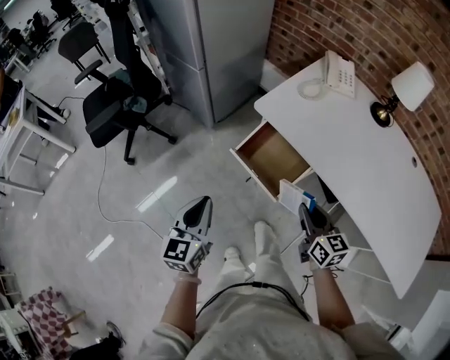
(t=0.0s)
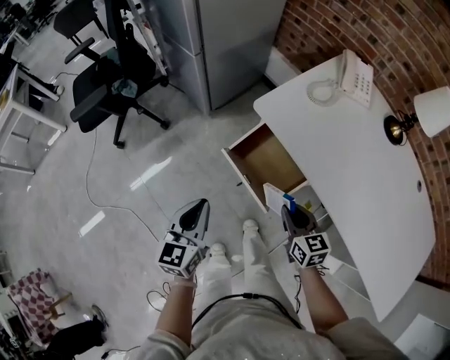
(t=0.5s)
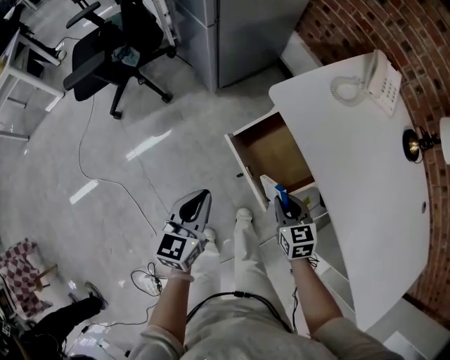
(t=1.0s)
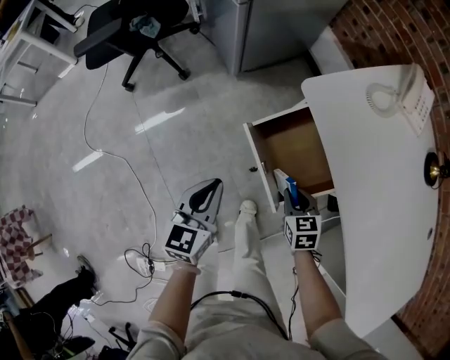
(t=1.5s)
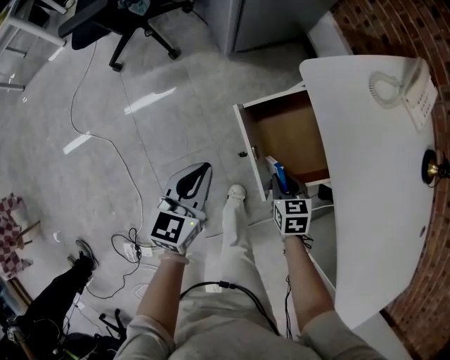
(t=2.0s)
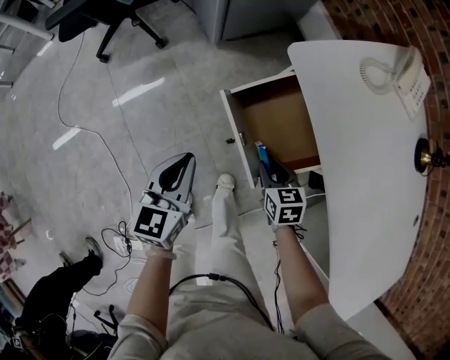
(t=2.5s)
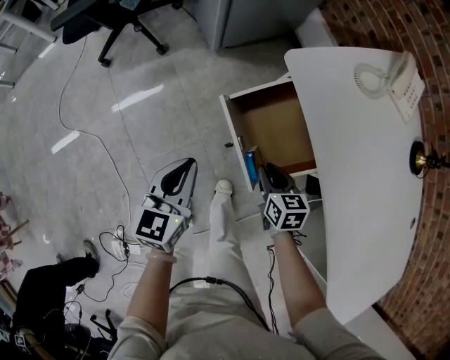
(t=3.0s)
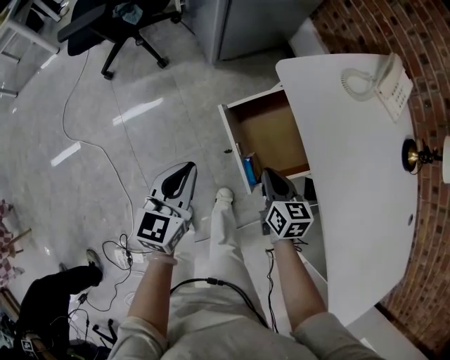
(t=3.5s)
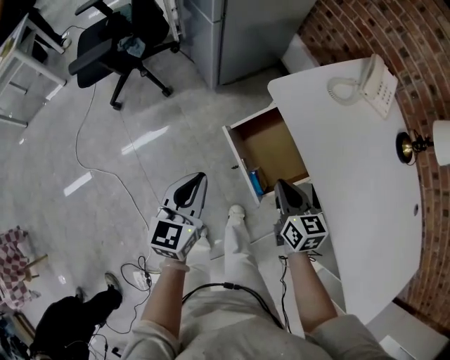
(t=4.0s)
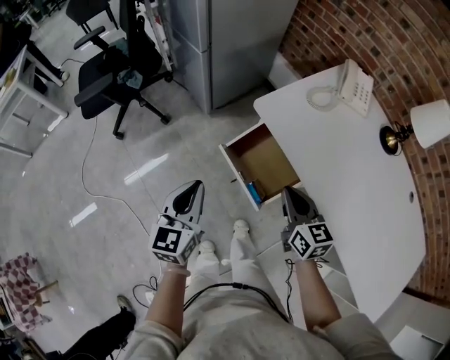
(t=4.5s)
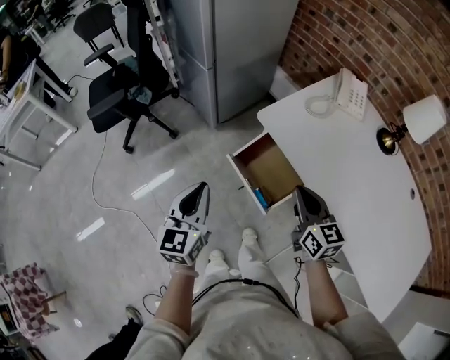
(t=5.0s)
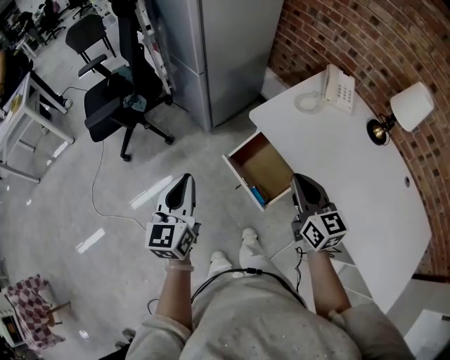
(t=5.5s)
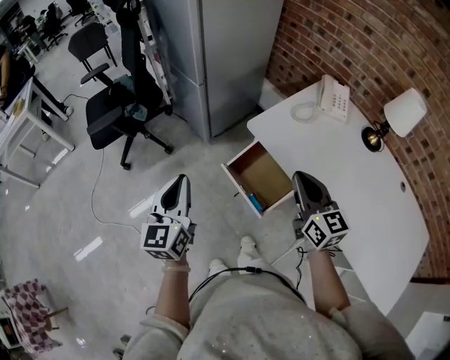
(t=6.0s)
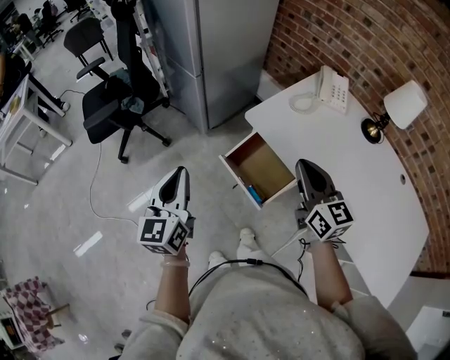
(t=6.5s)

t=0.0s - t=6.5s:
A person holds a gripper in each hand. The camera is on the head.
t=0.0s - t=2.0s: The left gripper heads downward and forward, covering approximately 15 cm. Meanwhile the right gripper travels downward and forward by about 25 cm, and tilts its fingers about 30 degrees downward.
t=2.0s - t=4.5s: The right gripper heads upward, covering approximately 25 cm, and tips its fingers upward by some 30 degrees. Meanwhile the left gripper shifts approximately 15 cm upward.
t=4.5s - t=6.5s: The right gripper shifts roughly 15 cm upward. The left gripper goes some 10 cm upward and to the left.

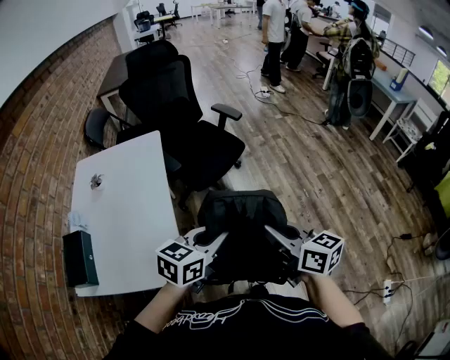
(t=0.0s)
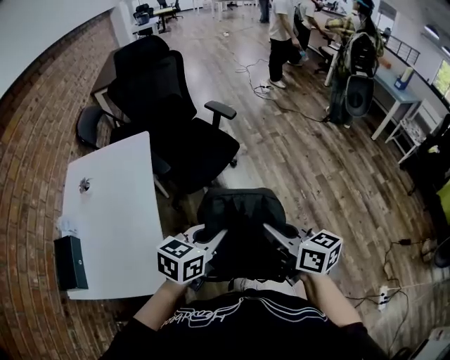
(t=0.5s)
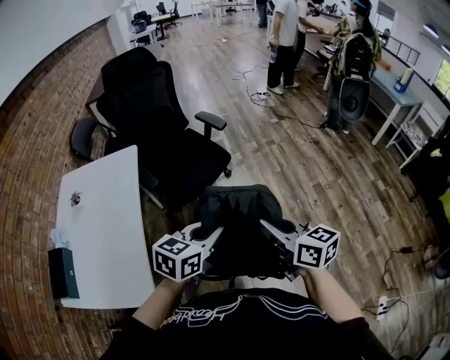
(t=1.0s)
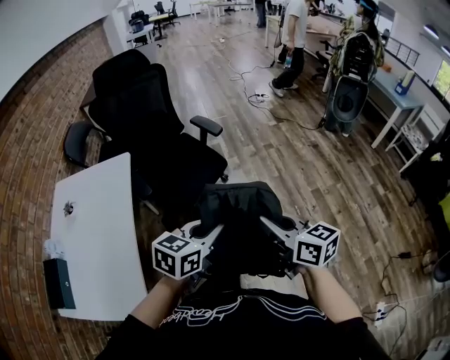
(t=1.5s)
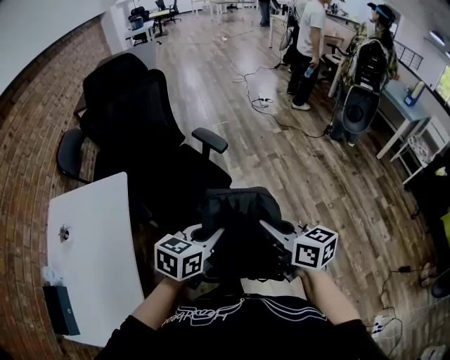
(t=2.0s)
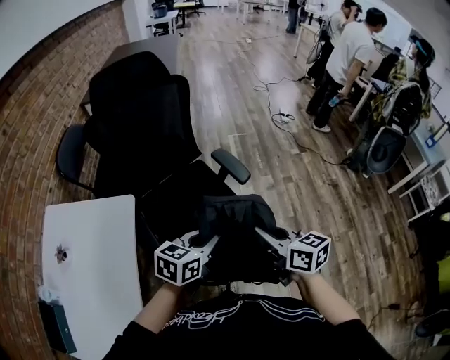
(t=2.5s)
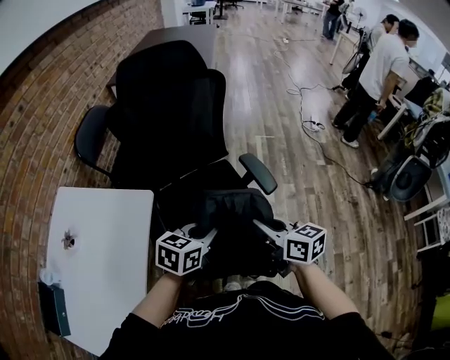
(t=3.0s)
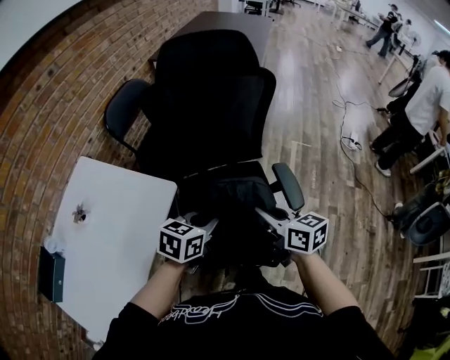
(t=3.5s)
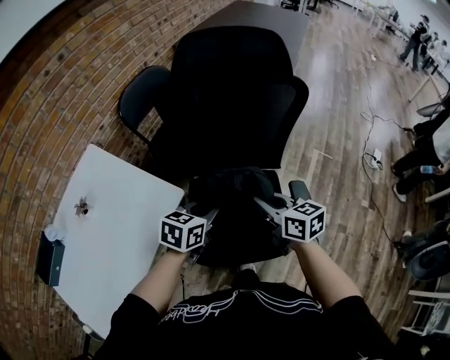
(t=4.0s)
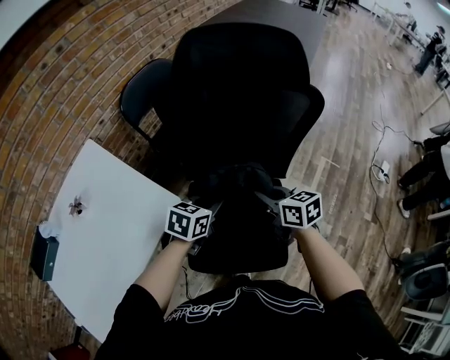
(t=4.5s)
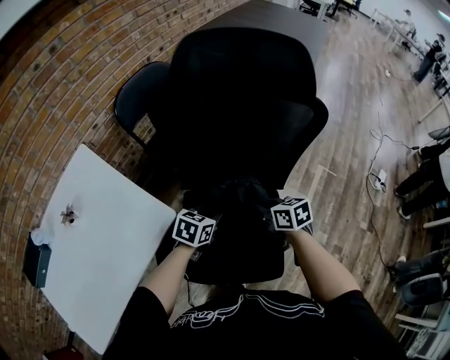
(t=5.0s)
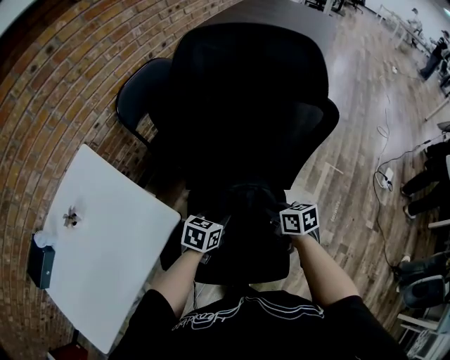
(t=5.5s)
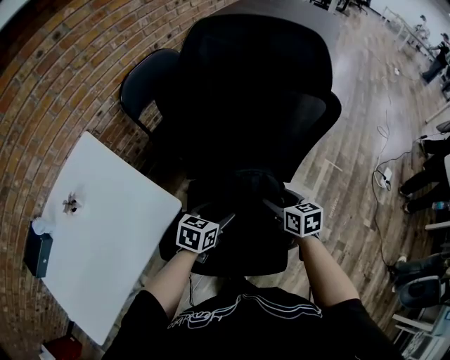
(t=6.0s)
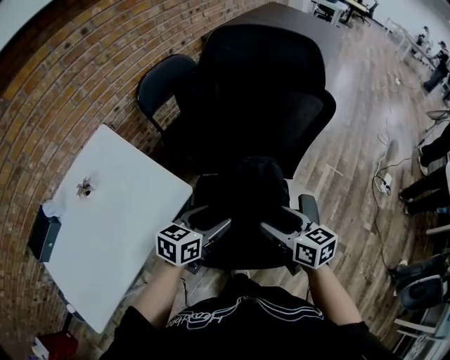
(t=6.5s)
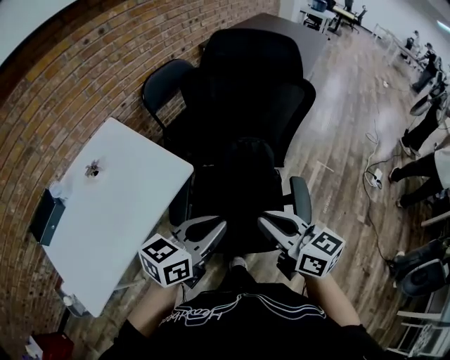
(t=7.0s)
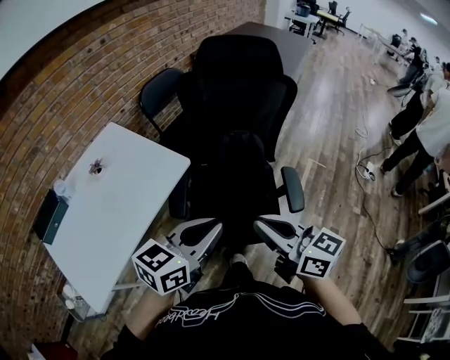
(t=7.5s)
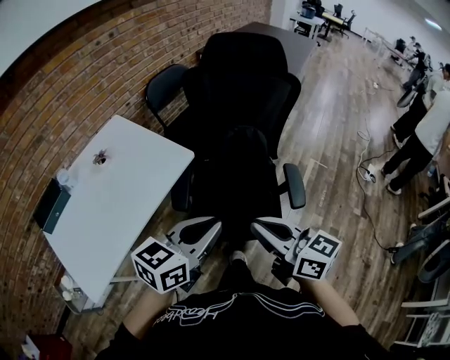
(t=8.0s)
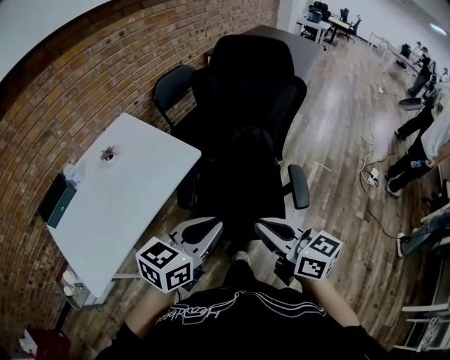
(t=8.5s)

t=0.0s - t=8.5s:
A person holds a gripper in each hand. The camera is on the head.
t=0.0s - t=2.0s: The grippers both shift forward by some 35 cm.
t=2.0s - t=4.0s: The two grippers travel together, about 50 cm. The left gripper rotates approximately 40 degrees. Meanwhile the right gripper rotates approximately 40 degrees.
t=4.0s - t=6.5s: The right gripper goes downward and returns, roughly 15 cm each way, and opens its fingers. Meanwhile the left gripper reaches approximately 15 cm downward, then returns, and opens its fingers.
t=6.5s - t=8.5s: The two grippers go approximately 30 cm backward and upward. The right gripper turns by approximately 20 degrees, and closes up. Meanwhile the left gripper closes up.

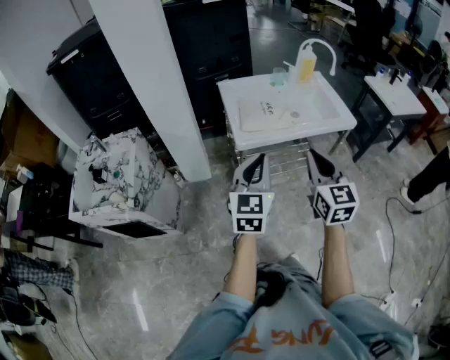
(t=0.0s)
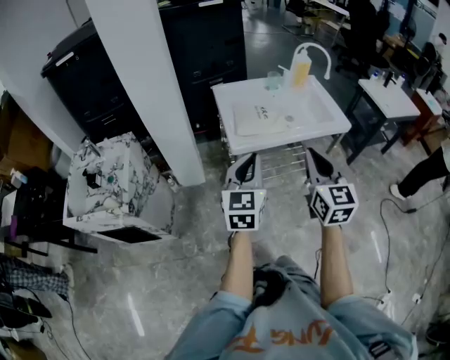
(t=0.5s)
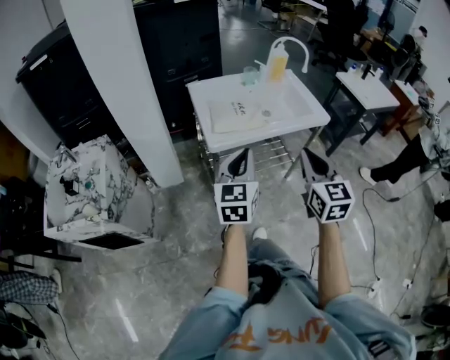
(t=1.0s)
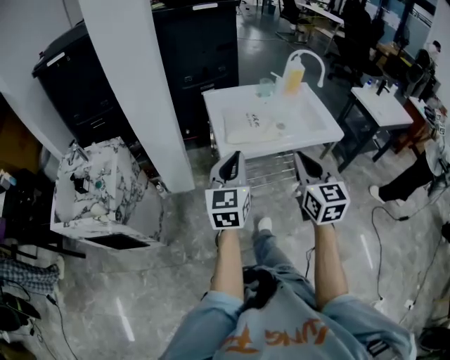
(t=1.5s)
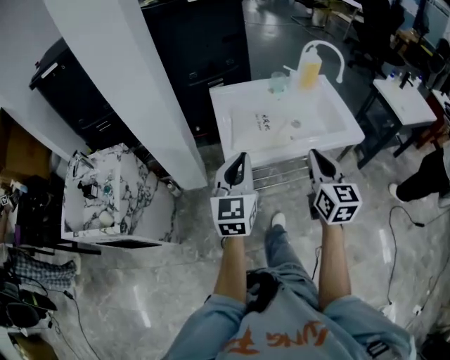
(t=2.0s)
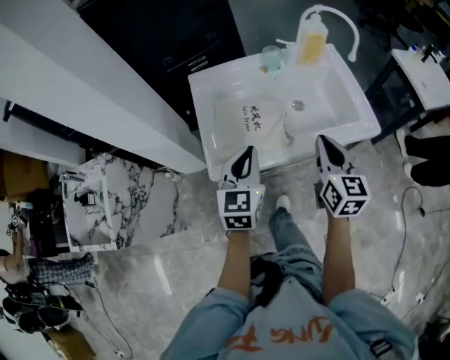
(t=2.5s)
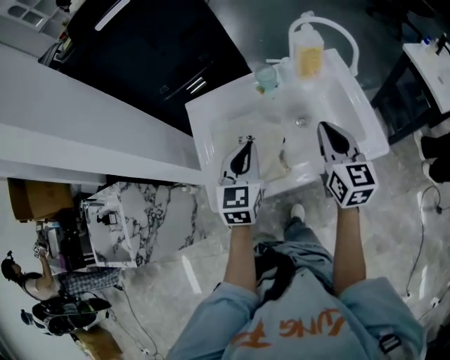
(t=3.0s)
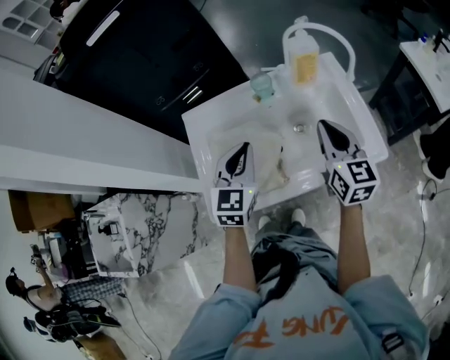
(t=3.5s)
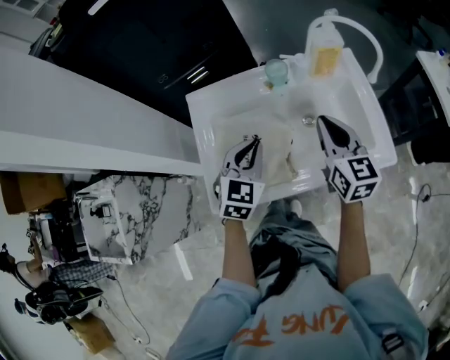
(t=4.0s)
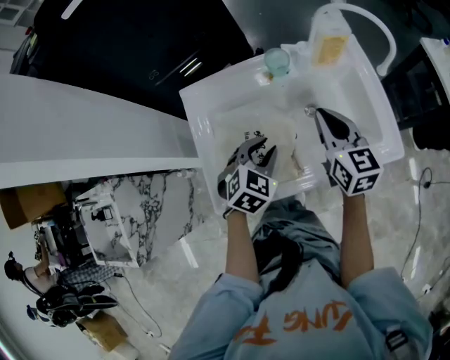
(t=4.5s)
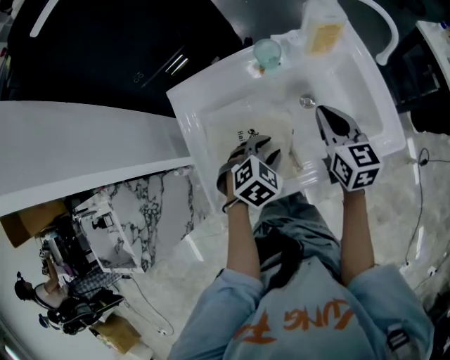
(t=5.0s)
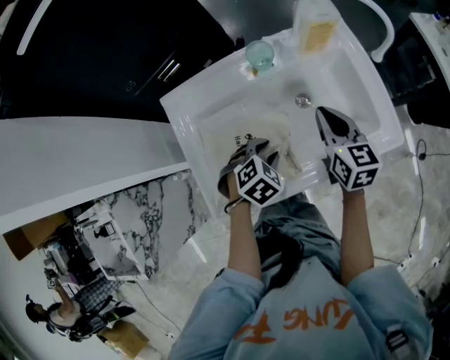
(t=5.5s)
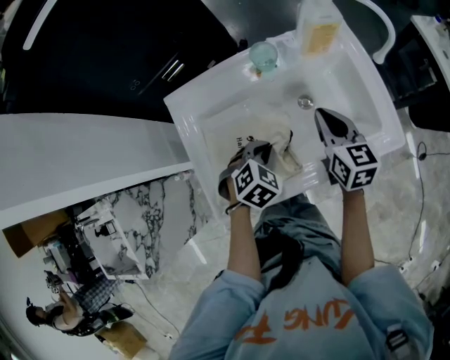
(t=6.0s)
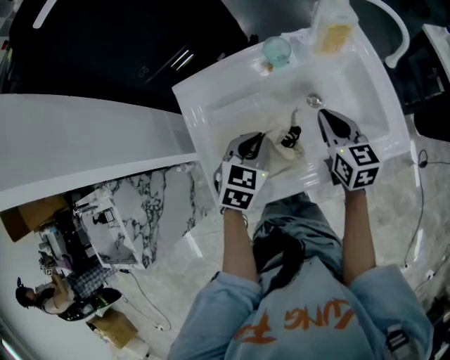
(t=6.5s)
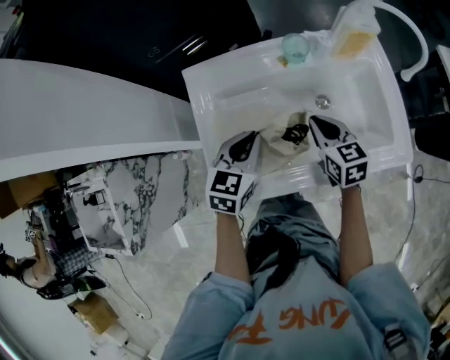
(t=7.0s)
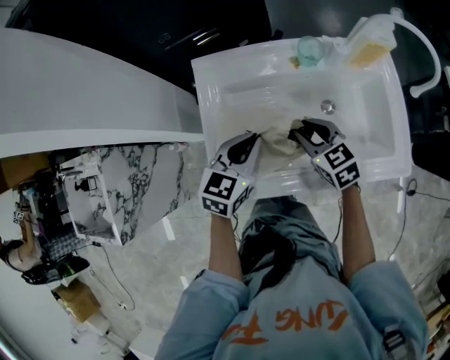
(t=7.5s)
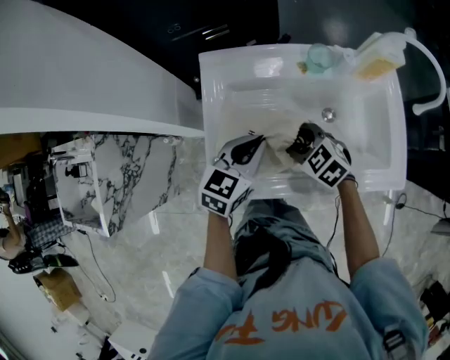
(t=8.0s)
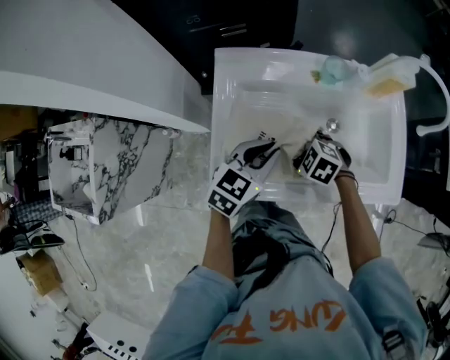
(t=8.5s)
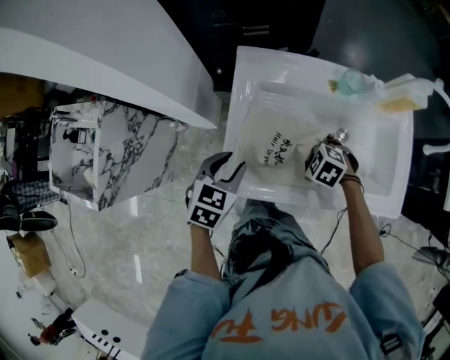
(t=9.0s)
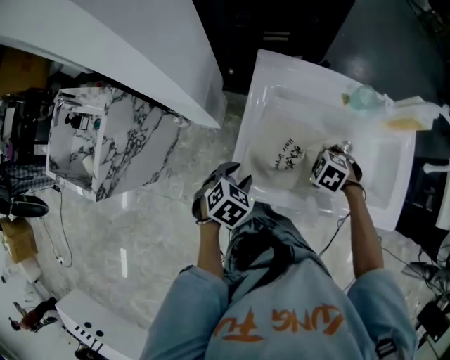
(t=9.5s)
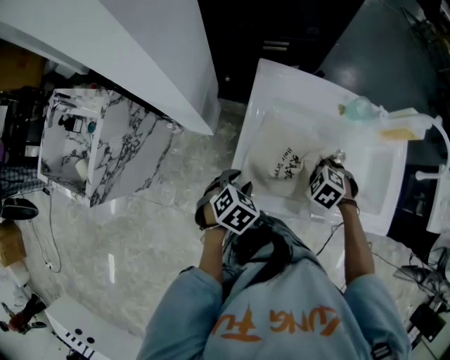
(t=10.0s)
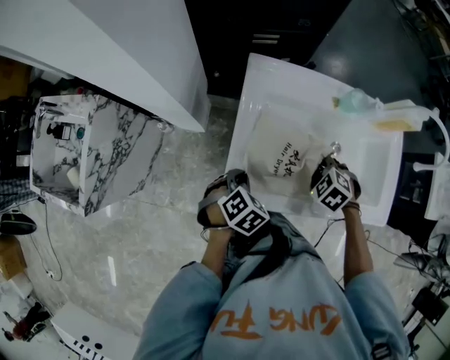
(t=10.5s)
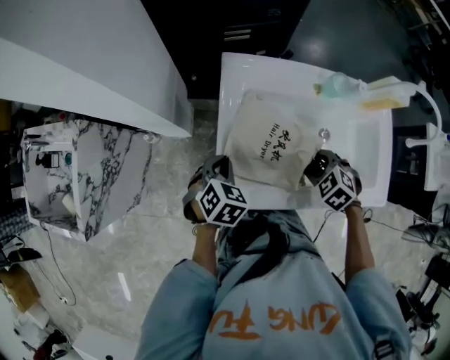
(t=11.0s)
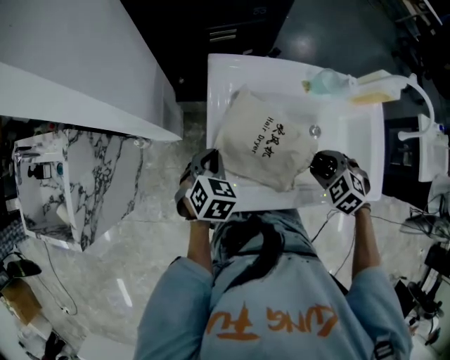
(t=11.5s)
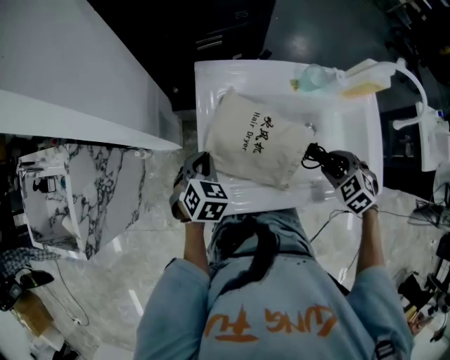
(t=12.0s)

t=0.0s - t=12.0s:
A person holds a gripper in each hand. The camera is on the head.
t=0.0s - t=2.0s: The grippers both shift forward by roughly 15 cm.
t=2.0s - t=4.0s: The right gripper goes approximately 35 cm forward, while the left gripper is displaced forward and to the right by roughly 35 cm, and rotates about 30 degrees.
t=4.0s - t=6.0s: Both grippers travel together downward, roughly 10 cm. The left gripper points its fingers approximately 30 degrees further downward, and opens, then closes again.
t=6.0s - t=8.0s: The left gripper shifts by some 10 cm, and points its fingers roughly 30 degrees further upward. The right gripper shifts by approximately 20 cm, changes its angle by about 70 degrees, and opens its fingers.
t=8.0s - t=10.0s: The right gripper shifts by some 5 cm, turns by about 30 degrees, and opens, then closes once more, while the left gripper moves about 20 cm, tilts its fingers about 40 degrees downward, and opens up.
t=10.0s - t=12.0s: The left gripper moves about 10 cm, and closes. Meanwhile the right gripper shifts by about 15 cm, and turns by about 20 degrees.
